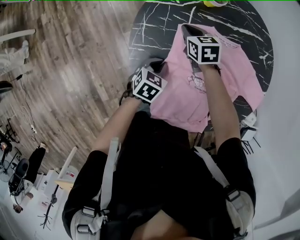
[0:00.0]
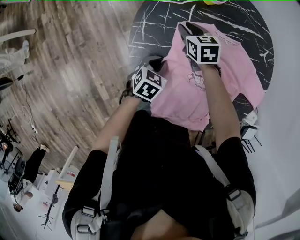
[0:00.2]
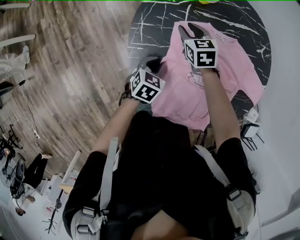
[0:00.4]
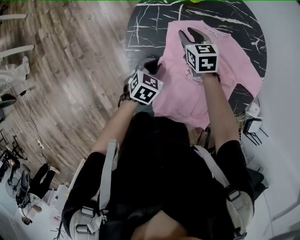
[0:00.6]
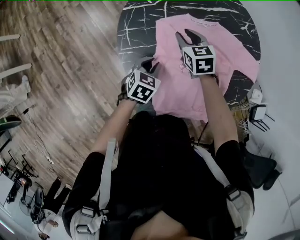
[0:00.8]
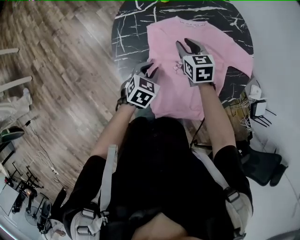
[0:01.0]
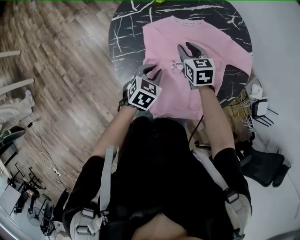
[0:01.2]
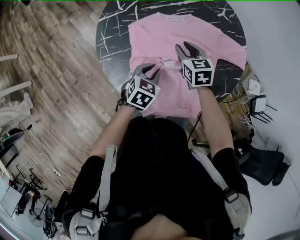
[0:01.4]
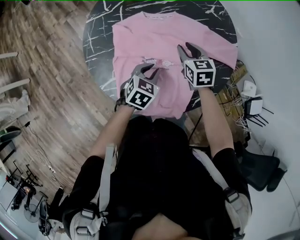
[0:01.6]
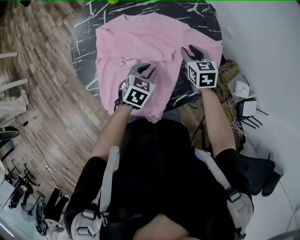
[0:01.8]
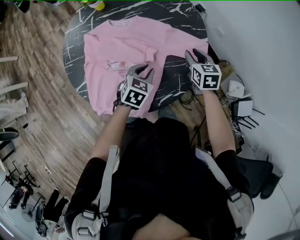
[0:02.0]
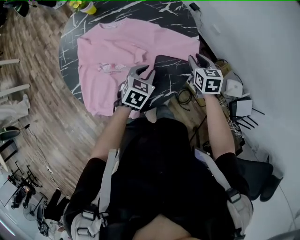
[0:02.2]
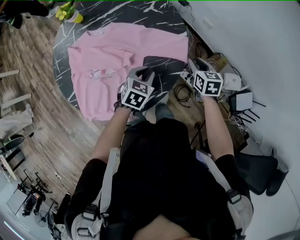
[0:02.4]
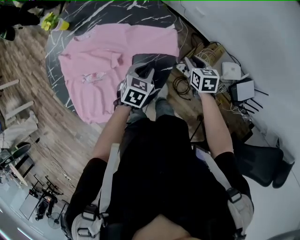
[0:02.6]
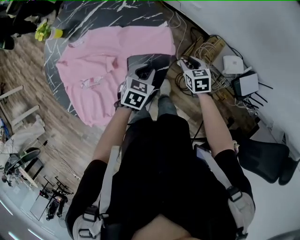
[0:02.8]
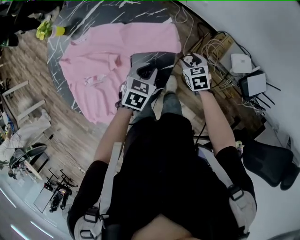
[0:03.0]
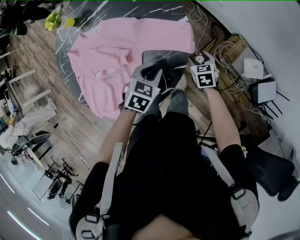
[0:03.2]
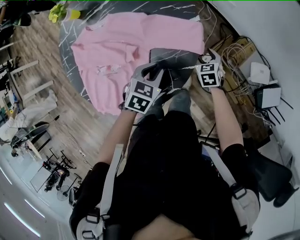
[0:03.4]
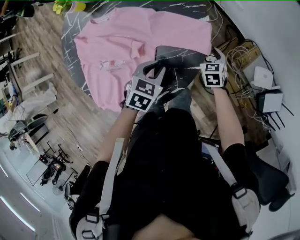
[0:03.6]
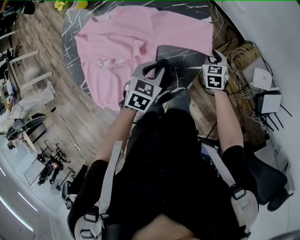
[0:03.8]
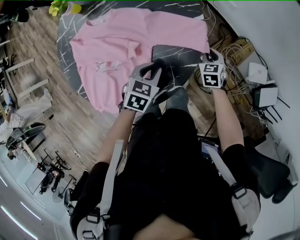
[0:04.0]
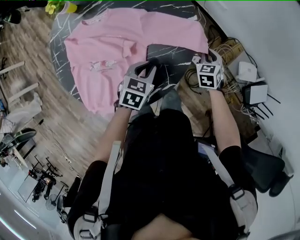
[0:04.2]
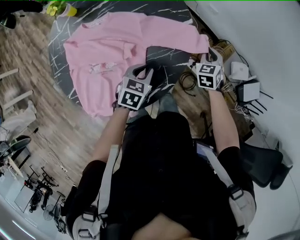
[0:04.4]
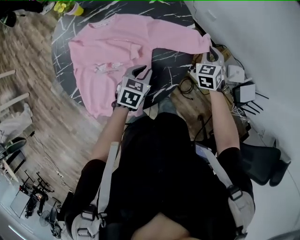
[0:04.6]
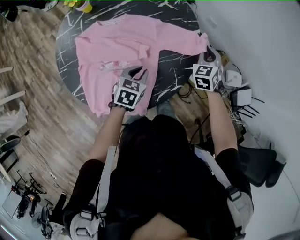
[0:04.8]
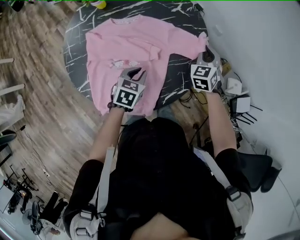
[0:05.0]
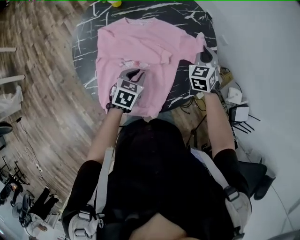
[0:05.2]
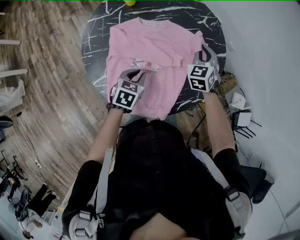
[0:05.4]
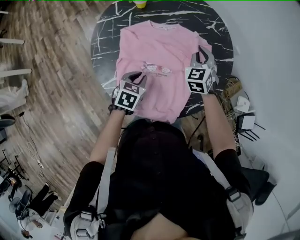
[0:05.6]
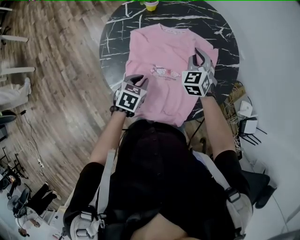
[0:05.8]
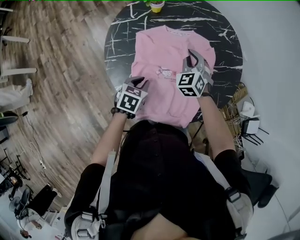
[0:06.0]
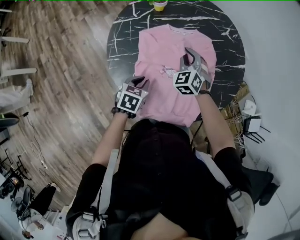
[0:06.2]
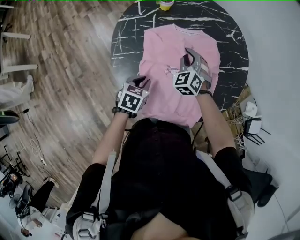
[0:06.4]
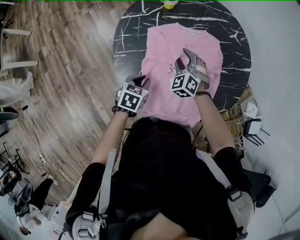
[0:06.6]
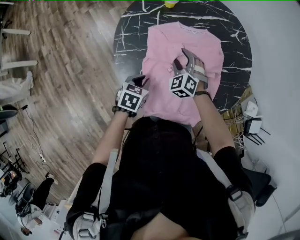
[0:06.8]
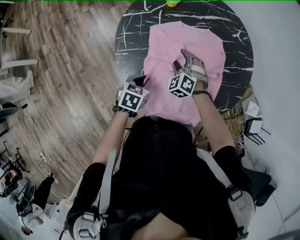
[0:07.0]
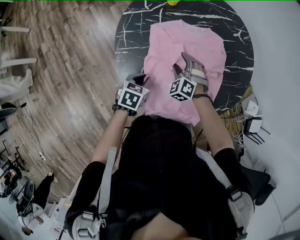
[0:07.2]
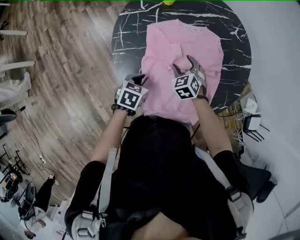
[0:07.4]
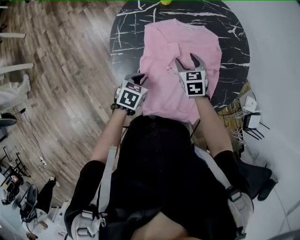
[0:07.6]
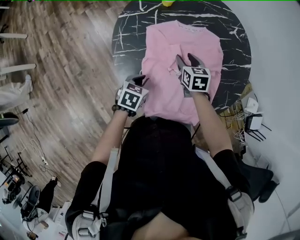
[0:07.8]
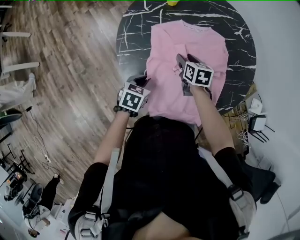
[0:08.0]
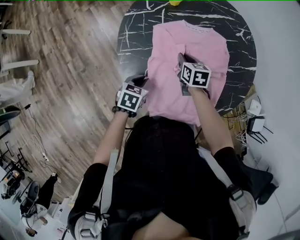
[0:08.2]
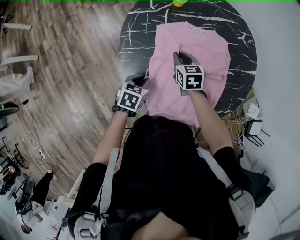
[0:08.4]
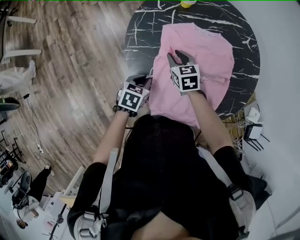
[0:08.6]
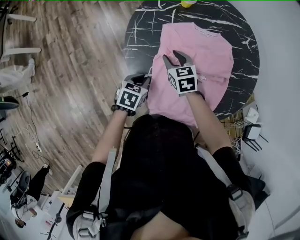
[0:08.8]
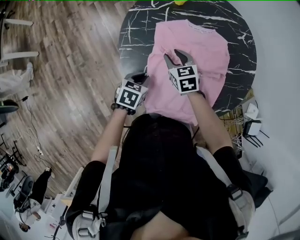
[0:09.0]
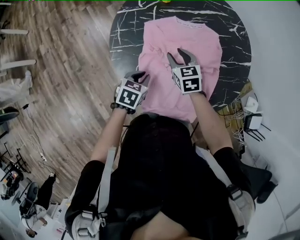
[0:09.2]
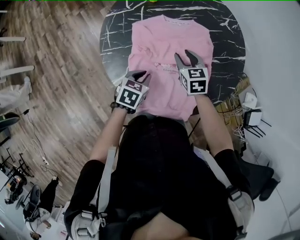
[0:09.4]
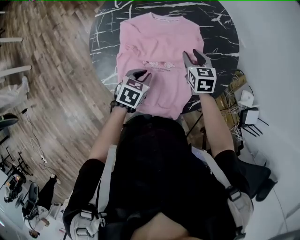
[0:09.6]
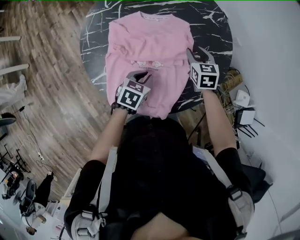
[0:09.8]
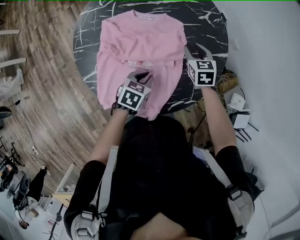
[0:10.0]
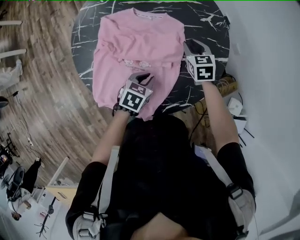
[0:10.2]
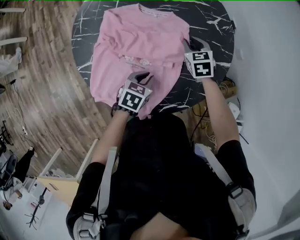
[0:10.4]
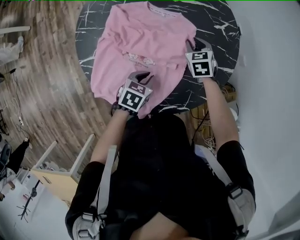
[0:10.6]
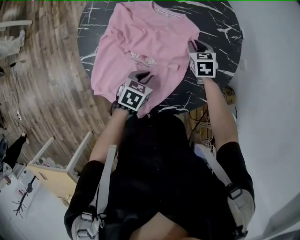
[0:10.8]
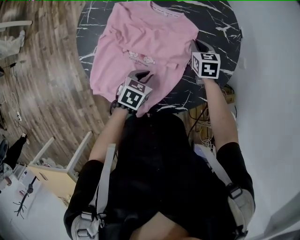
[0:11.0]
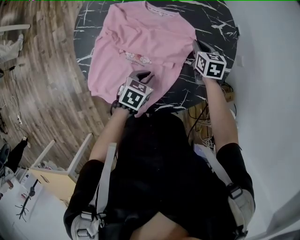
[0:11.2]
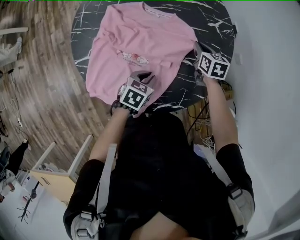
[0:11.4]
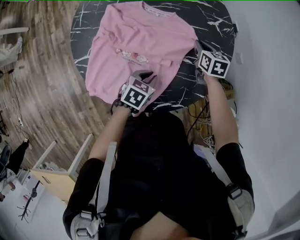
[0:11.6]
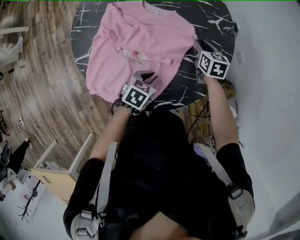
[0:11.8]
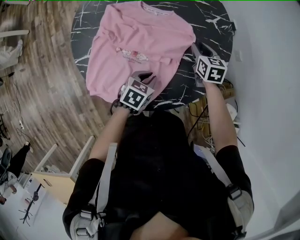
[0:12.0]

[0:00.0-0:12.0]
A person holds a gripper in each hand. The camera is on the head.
0:00.0 to 0:01.6: The grippers both shift to the right by some 25 cm. The right gripper changes its angle by some 20 degrees. Meanwhile the left gripper swivels roughly 20 degrees.
0:01.6 to 0:03.0: The grippers both shift to the right by some 35 cm.
0:03.0 to 0:04.4: The right gripper is displaced upward and forward by roughly 10 cm, changes its angle by approximately 30 degrees, and closes up. The left gripper shifts roughly 10 cm to the left.
0:04.4 to 0:06.0: The right gripper heads to the left, covering approximately 50 cm, and changes its angle by roughly 30 degrees. Meanwhile the left gripper heads to the left and backward, covering roughly 35 cm.
0:06.0 to 0:07.6: The left gripper ends up approximately 5 cm from where it was, while the right gripper is displaced downward and backward by about 10 cm, turns by some 30 degrees, and opens.
0:07.6 to 0:09.0: The right gripper travels to the left by approximately 10 cm.
0:09.0 to 0:10.4: The right gripper shifts some 30 cm to the right and forward; the left gripper travels to the right by roughly 30 cm.
0:10.4 to 0:12.0: The right gripper goes about 5 cm to the right.

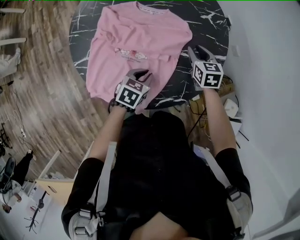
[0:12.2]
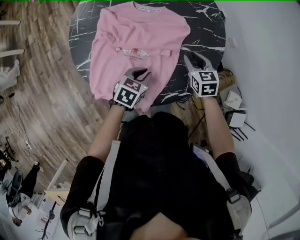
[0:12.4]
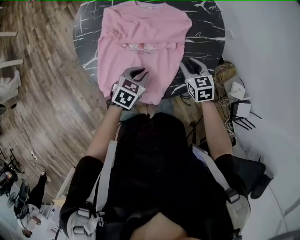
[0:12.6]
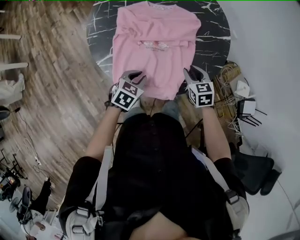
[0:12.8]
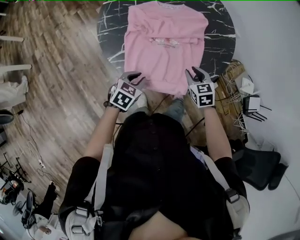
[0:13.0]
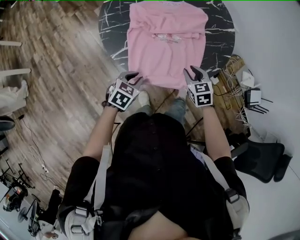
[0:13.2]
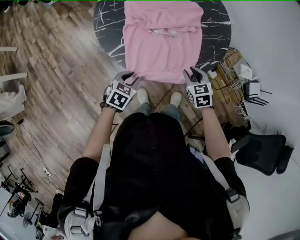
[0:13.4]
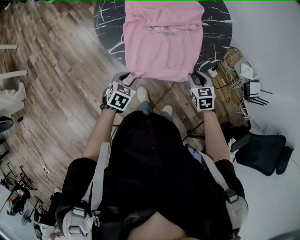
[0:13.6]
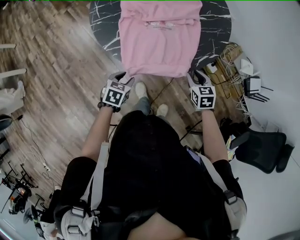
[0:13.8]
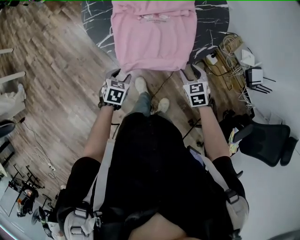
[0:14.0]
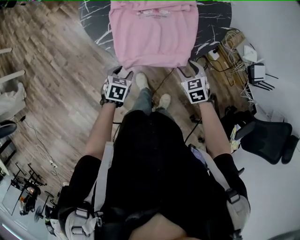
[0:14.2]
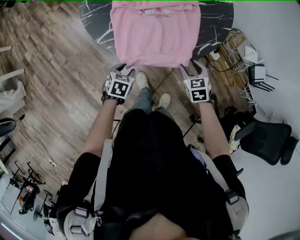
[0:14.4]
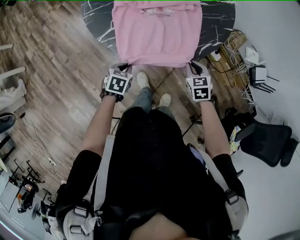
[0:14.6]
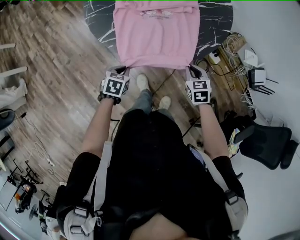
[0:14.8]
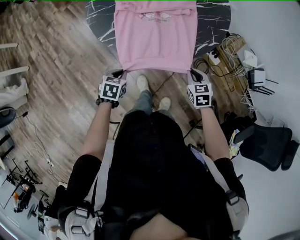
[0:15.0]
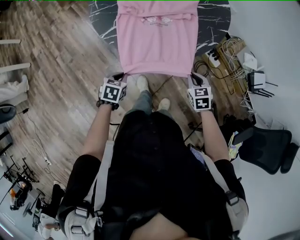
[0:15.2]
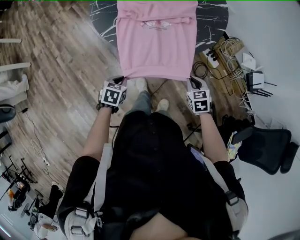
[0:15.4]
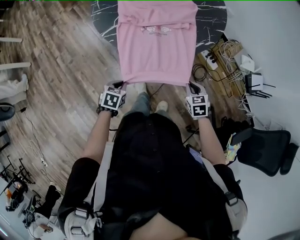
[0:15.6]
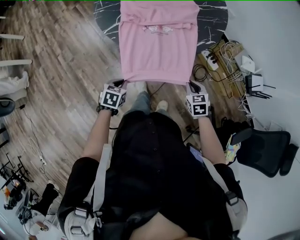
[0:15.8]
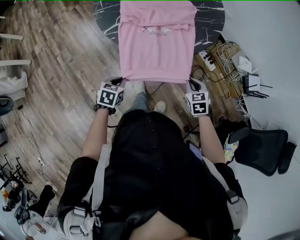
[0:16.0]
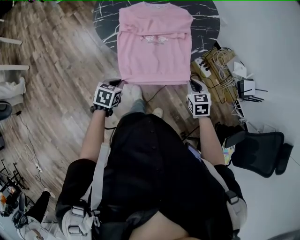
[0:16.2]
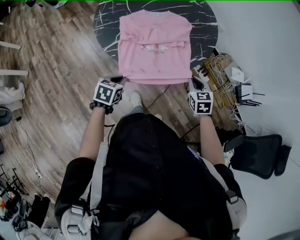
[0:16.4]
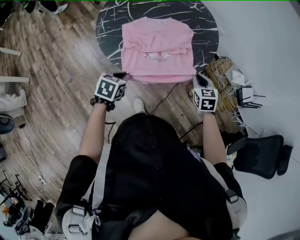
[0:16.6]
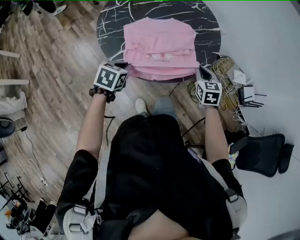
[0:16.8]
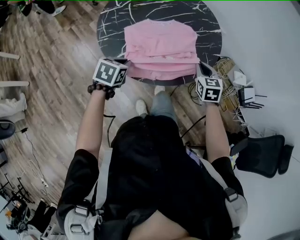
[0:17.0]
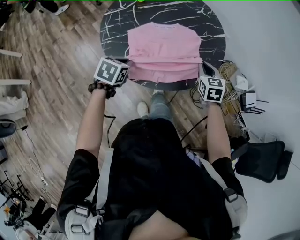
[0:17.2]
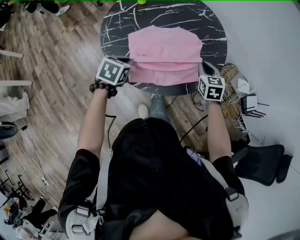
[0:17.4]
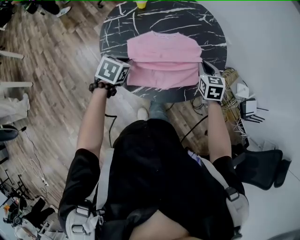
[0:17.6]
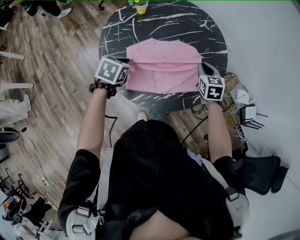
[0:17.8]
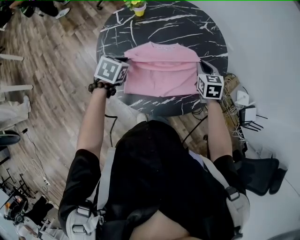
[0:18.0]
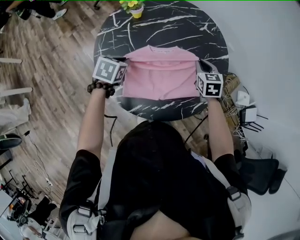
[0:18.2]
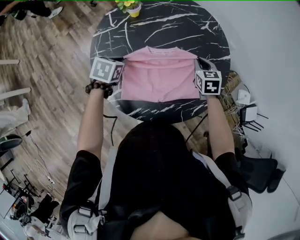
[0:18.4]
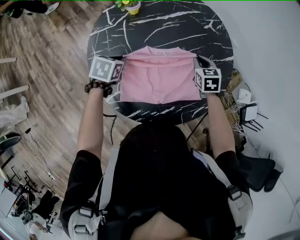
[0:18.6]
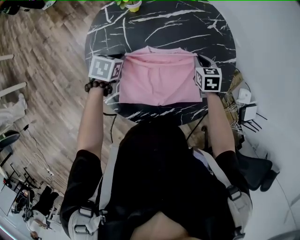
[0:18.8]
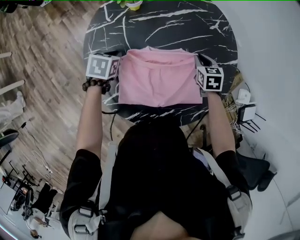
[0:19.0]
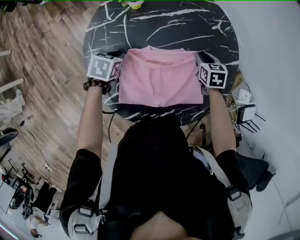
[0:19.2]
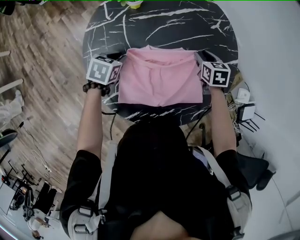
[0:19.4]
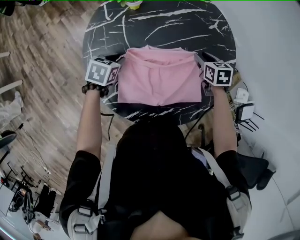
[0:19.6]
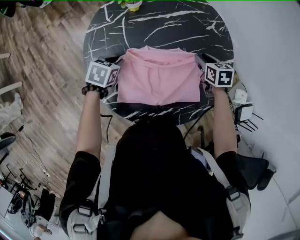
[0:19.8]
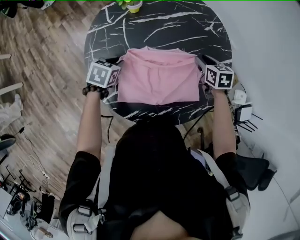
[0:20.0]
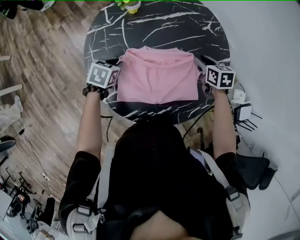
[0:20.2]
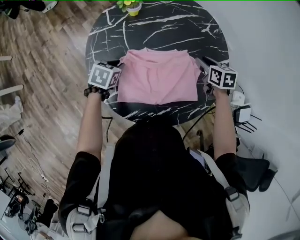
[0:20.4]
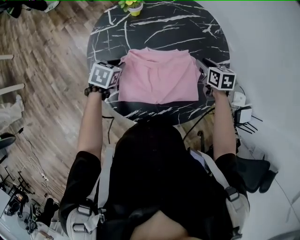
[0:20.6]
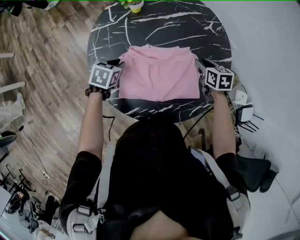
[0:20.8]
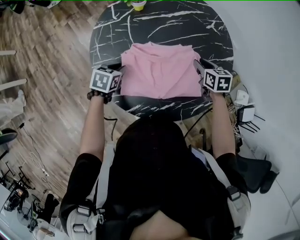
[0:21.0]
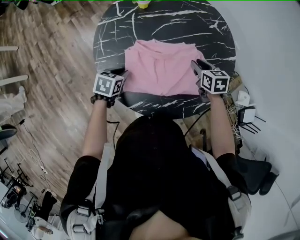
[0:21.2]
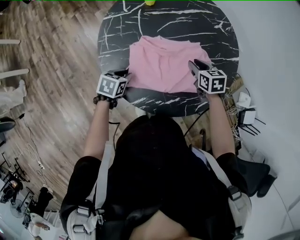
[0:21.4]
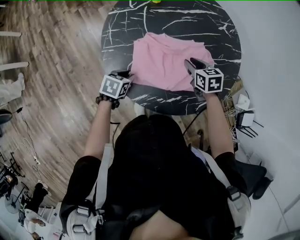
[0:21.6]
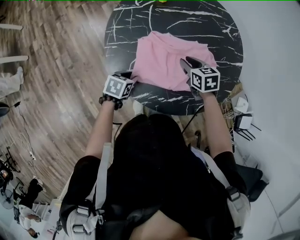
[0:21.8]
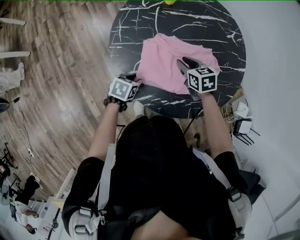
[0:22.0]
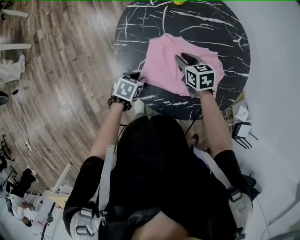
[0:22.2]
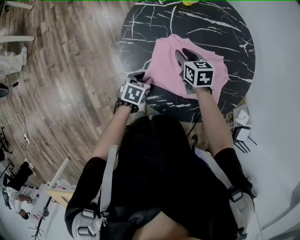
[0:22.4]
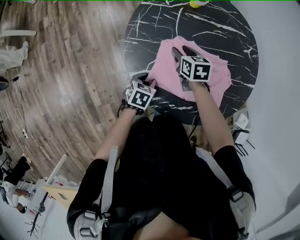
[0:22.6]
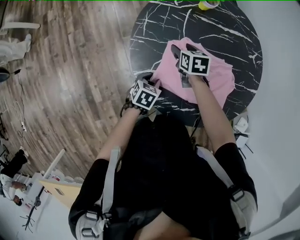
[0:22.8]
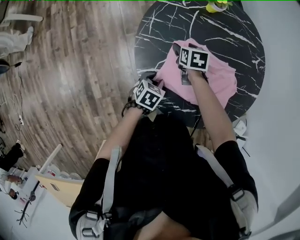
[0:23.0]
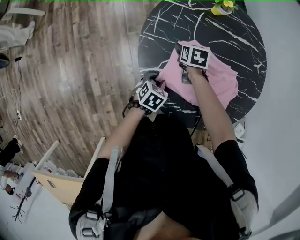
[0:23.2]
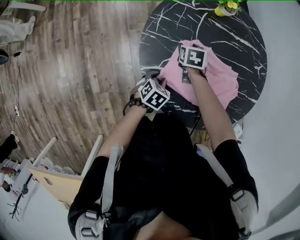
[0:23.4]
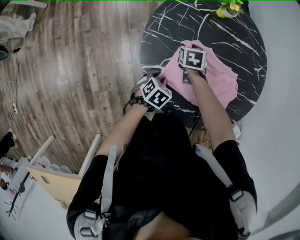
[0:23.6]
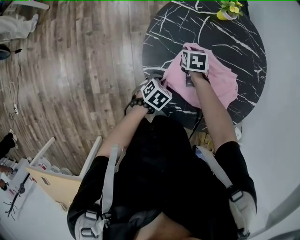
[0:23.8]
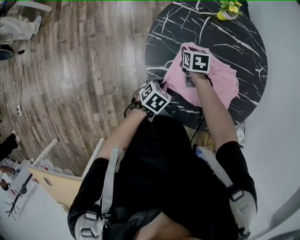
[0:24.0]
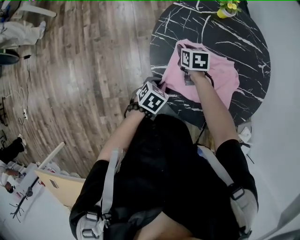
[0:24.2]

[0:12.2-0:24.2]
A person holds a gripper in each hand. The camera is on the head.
0:12.2 to 0:13.8: The left gripper goes approximately 35 cm backward and to the left; the right gripper moves backward, about 35 cm.
0:13.8 to 0:15.2: The grippers both shift backward by about 5 cm. The left gripper closes up.
0:15.2 to 0:16.6: Both grippers move upward and forward, approximately 15 cm.
0:16.6 to 0:18.2: The left gripper shifts roughly 25 cm forward. The right gripper shifts some 30 cm forward and to the left.
0:18.2 to 0:19.8: The left gripper goes about 10 cm downward. The right gripper shifts some 10 cm forward and downward.
0:19.8 to 0:21.2: Both grippers travel together backward, some 10 cm.
0:21.2 to 0:22.6: The right gripper heads to the left, covering roughly 25 cm; the left gripper travels backward and downward by approximately 10 cm.
0:22.6 to 0:24.2: The right gripper travels to the left by approximately 10 cm. Meanwhile the left gripper shifts by about 5 cm.
